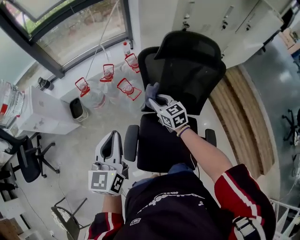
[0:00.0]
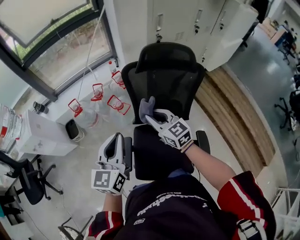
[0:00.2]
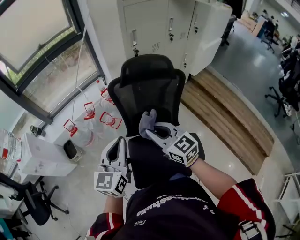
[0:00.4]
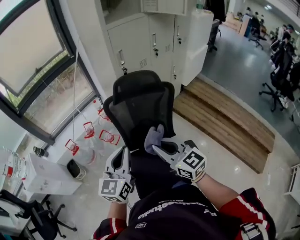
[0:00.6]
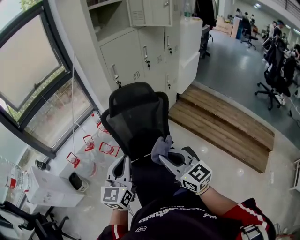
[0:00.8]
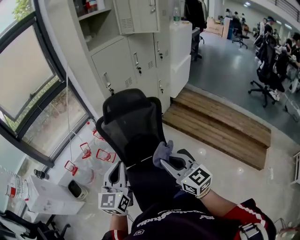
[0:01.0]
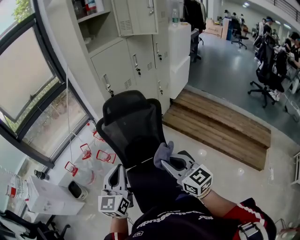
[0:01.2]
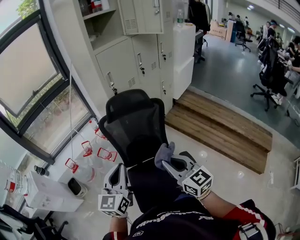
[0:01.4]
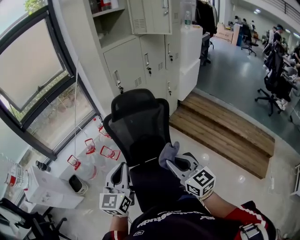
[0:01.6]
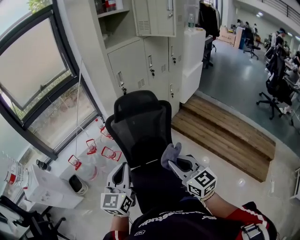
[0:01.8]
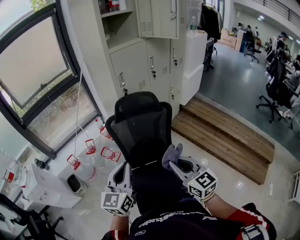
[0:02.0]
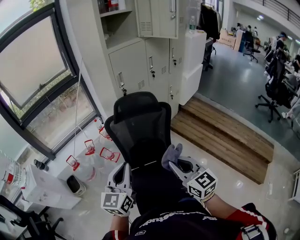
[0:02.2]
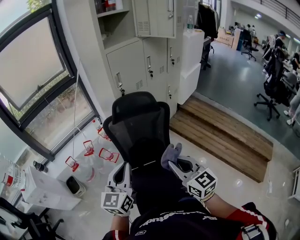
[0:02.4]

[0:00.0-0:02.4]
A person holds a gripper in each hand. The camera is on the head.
0:00.0 to 0:01.2: The left gripper goes approximately 25 cm to the right, upward and backward, and changes its angle by about 30 degrees. Meanwhile the right gripper goes roughly 50 cm backward, upward and to the right, and swivels approximately 30 degrees.
0:01.2 to 0:02.4: The grippers make only small movements.

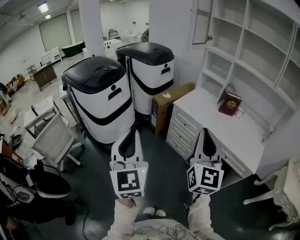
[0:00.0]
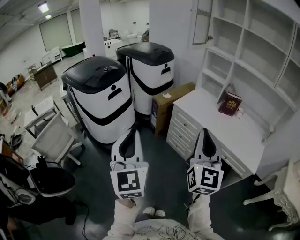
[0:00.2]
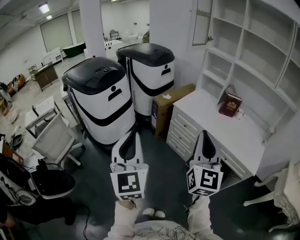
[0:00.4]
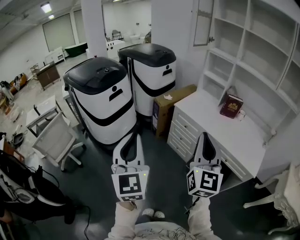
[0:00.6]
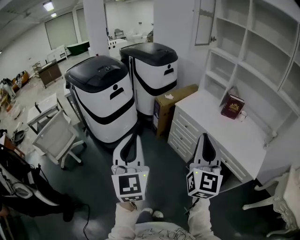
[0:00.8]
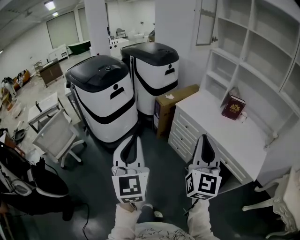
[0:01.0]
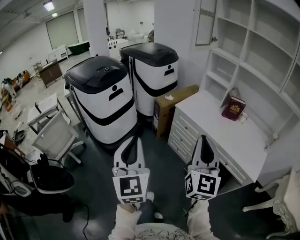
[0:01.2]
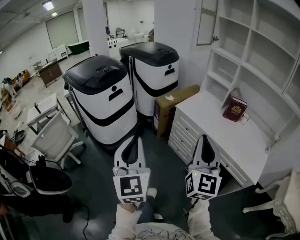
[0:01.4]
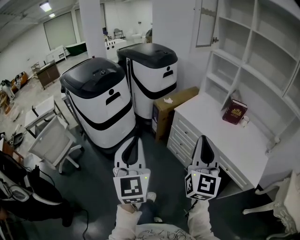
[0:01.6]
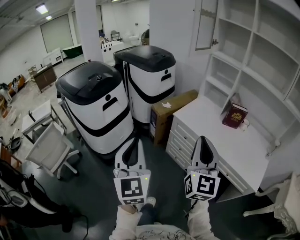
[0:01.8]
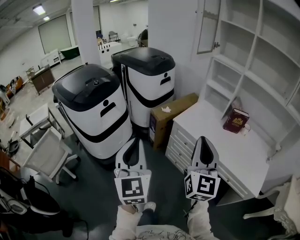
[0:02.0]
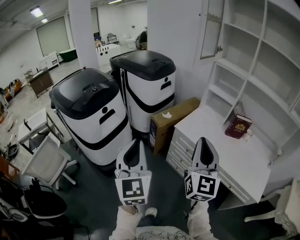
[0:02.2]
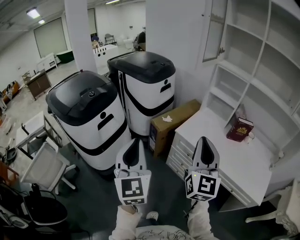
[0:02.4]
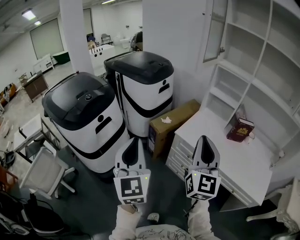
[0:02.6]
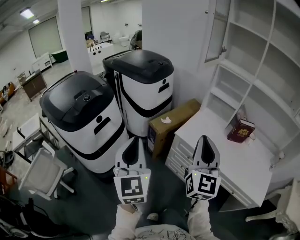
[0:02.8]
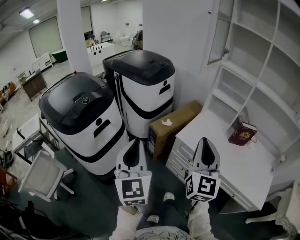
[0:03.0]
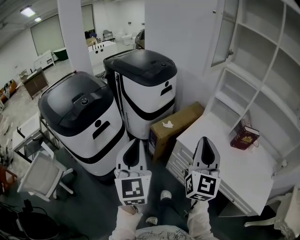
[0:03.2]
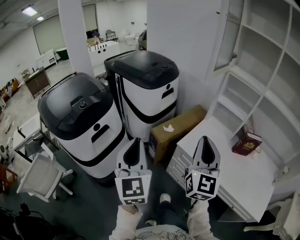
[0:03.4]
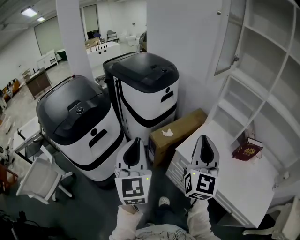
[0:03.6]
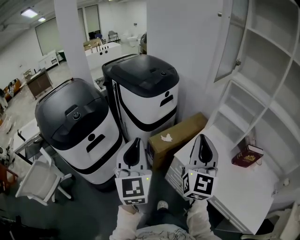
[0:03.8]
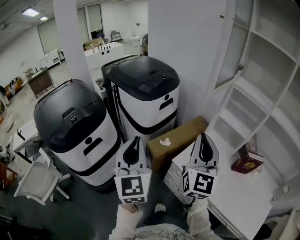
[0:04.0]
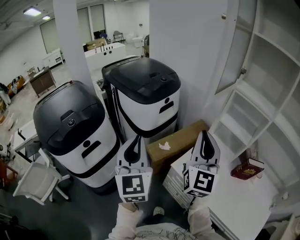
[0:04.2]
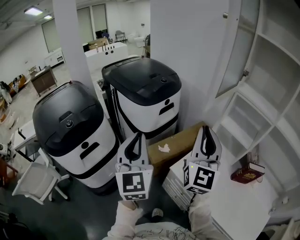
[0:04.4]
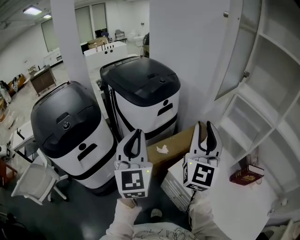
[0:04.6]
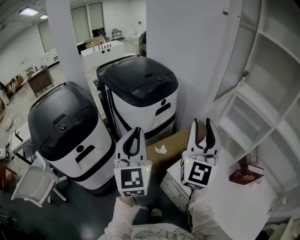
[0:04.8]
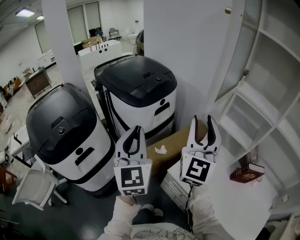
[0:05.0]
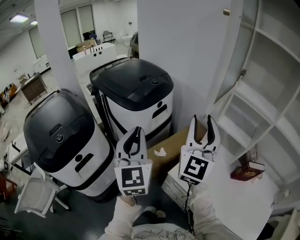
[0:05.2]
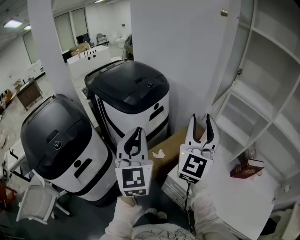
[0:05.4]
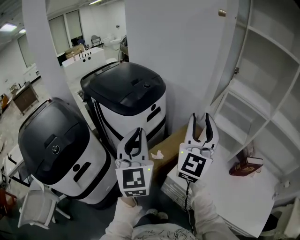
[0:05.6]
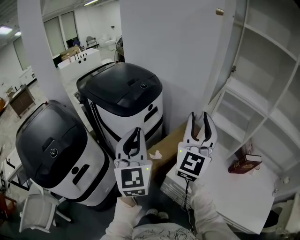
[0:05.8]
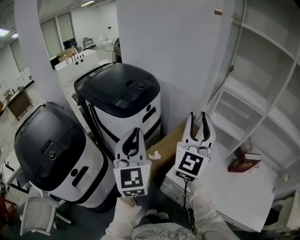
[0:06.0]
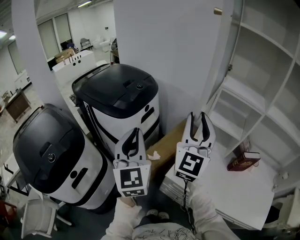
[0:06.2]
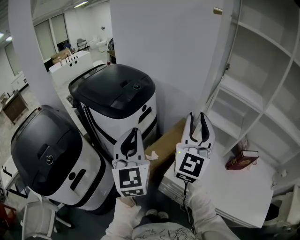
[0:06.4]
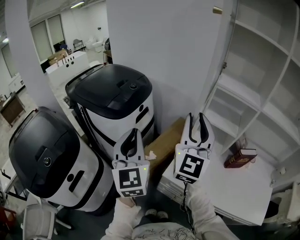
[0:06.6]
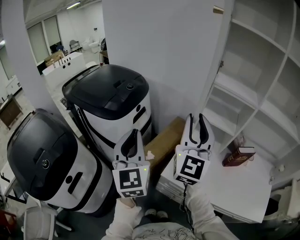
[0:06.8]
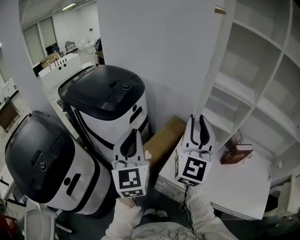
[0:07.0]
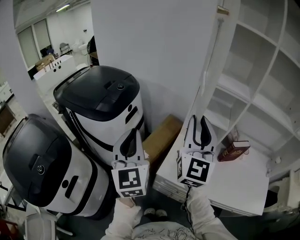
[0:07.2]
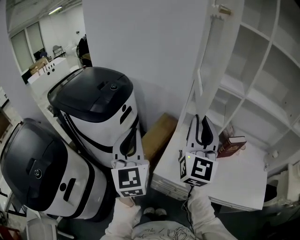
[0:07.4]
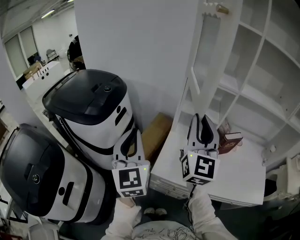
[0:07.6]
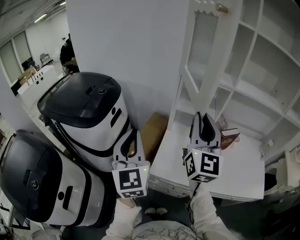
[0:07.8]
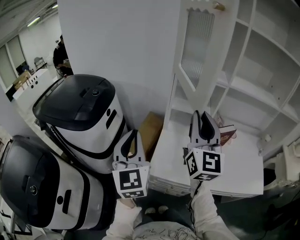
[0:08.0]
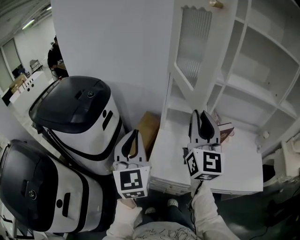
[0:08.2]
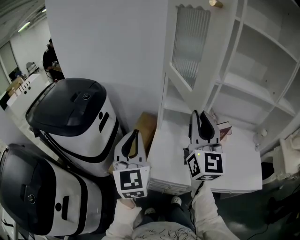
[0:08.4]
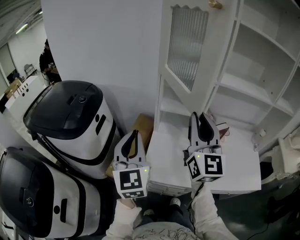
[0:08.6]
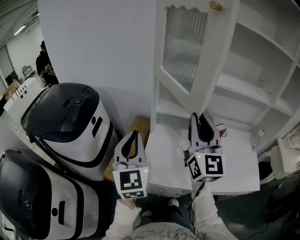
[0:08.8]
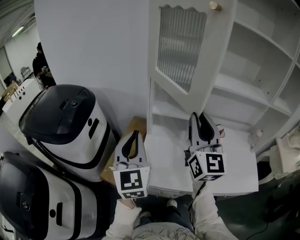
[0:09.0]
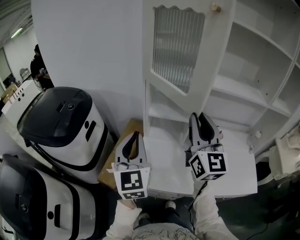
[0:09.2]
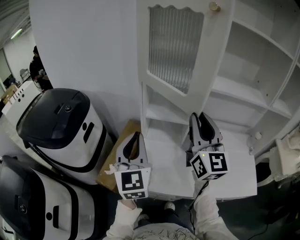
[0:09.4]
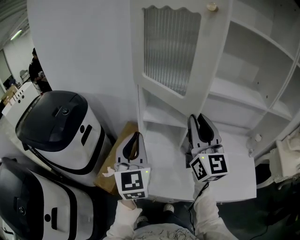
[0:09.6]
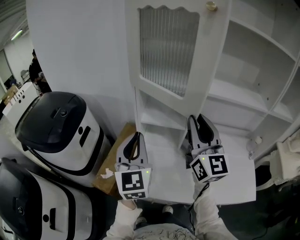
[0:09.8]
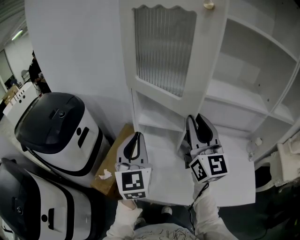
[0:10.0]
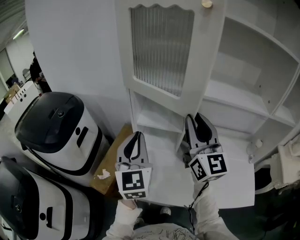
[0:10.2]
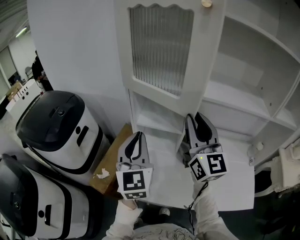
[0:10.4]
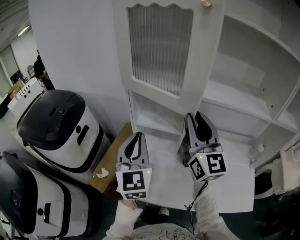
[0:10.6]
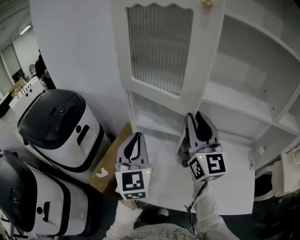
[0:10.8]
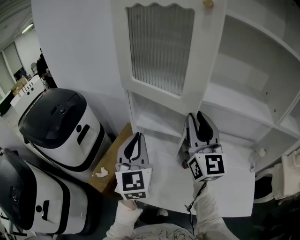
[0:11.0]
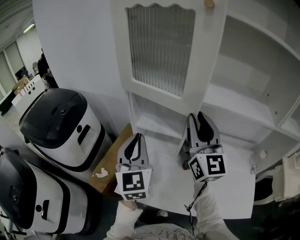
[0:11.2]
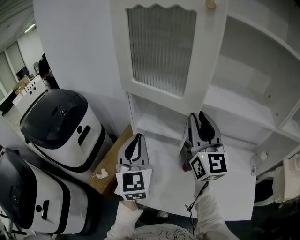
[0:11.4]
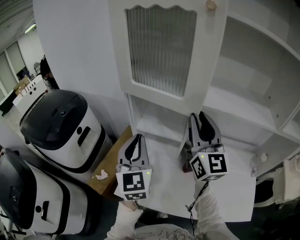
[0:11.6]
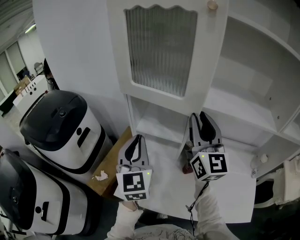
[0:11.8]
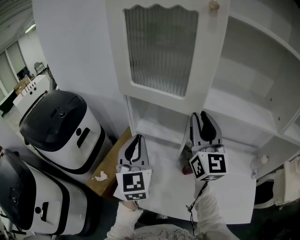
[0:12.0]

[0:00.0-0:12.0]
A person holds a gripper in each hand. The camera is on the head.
0:00.0 to 0:01.6: The two grippers go about 10 cm forward.
0:01.6 to 0:03.0: The two grippers go about 30 cm forward.
0:03.0 to 0:04.4: The two grippers go roughly 25 cm forward.
0:04.4 to 0:06.0: The two grippers go roughly 10 cm forward. The right gripper changes its angle by some 20 degrees, and opens.
0:06.0 to 0:07.6: Both grippers travel together to the right, approximately 10 cm.
0:07.6 to 0:09.0: The left gripper travels to the right and forward by approximately 15 cm; the right gripper is displaced to the right by approximately 10 cm.
0:09.0 to 0:10.4: Both grippers travel together to the right and forward, roughly 15 cm.
0:10.4 to 0:12.0: The right gripper shifts roughly 5 cm forward, while the left gripper moves approximately 5 cm.

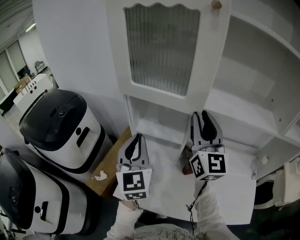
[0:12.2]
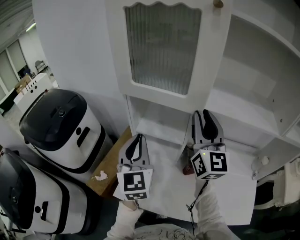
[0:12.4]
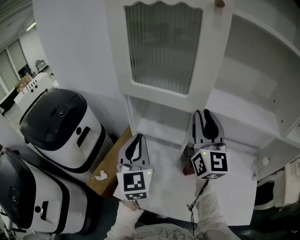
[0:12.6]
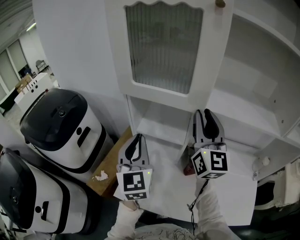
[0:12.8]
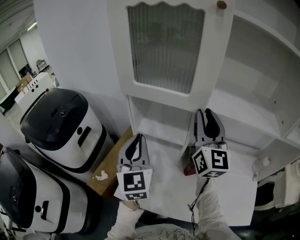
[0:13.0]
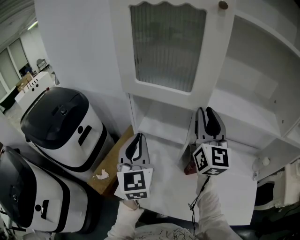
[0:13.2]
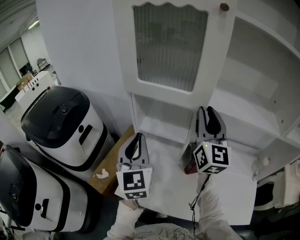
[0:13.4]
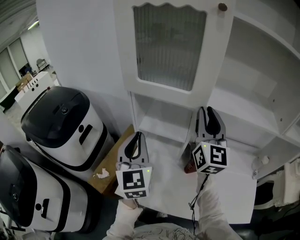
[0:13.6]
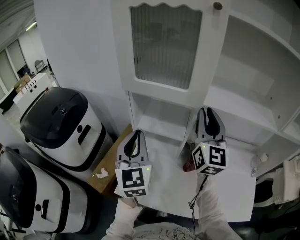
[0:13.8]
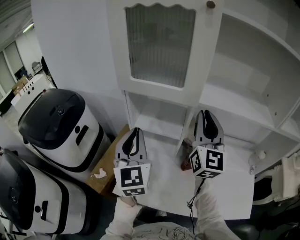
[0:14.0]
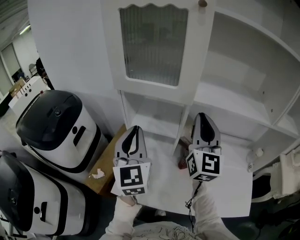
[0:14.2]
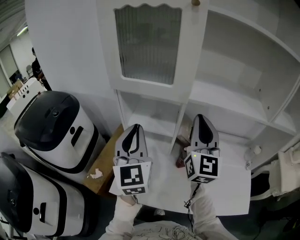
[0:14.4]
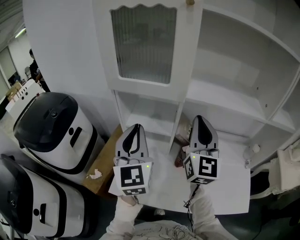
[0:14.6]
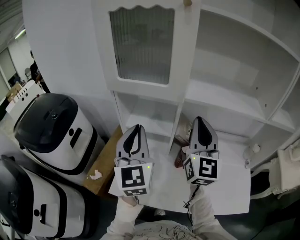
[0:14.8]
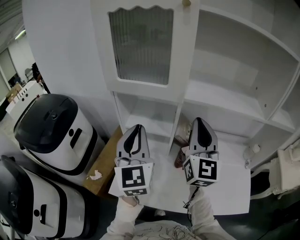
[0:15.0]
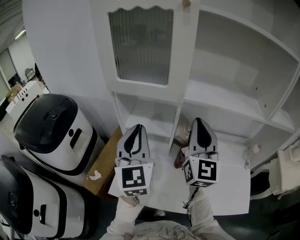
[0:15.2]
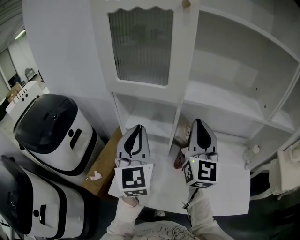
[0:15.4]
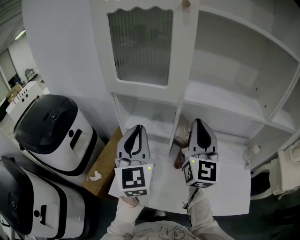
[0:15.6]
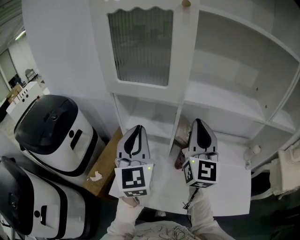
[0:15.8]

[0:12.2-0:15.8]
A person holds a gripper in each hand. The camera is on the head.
0:12.2 to 0:14.0: There are only small adjustments of the grippers.
0:14.0 to 0:15.8: The left gripper goes approximately 5 cm to the right.

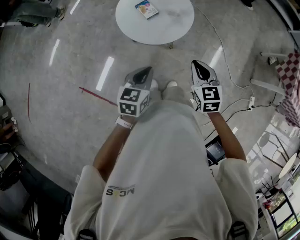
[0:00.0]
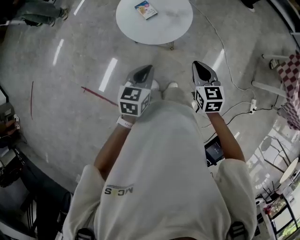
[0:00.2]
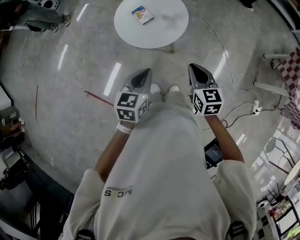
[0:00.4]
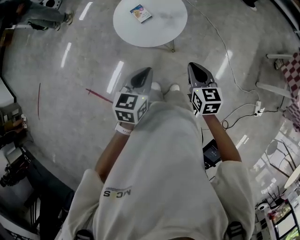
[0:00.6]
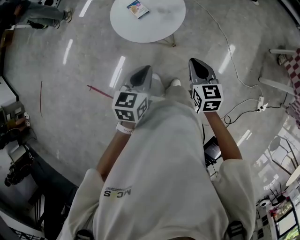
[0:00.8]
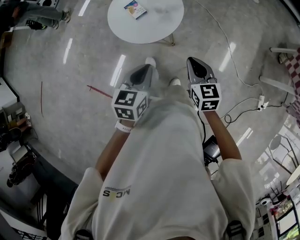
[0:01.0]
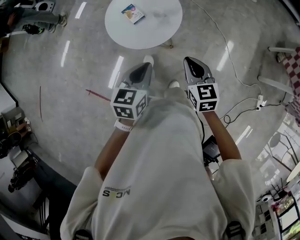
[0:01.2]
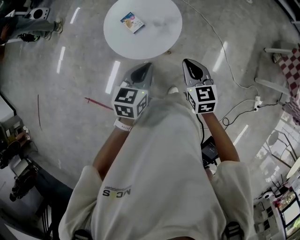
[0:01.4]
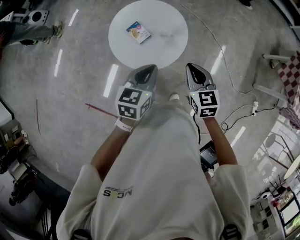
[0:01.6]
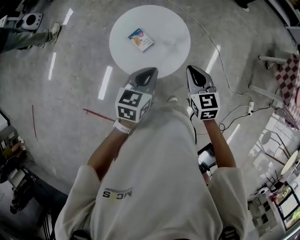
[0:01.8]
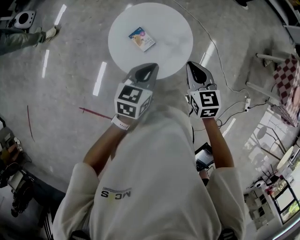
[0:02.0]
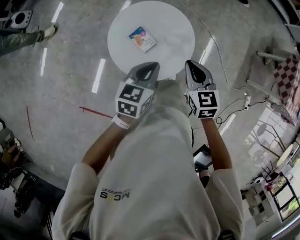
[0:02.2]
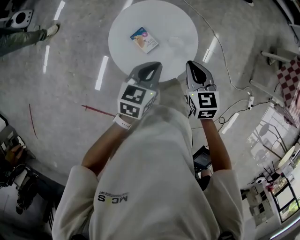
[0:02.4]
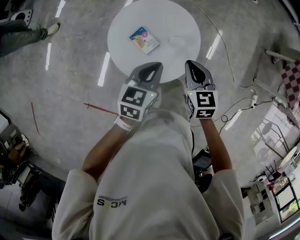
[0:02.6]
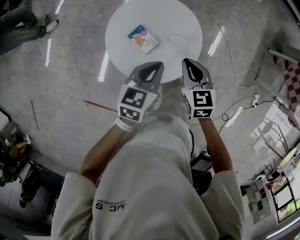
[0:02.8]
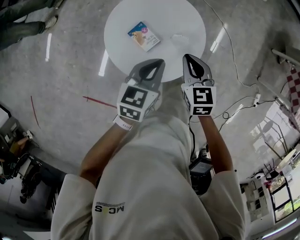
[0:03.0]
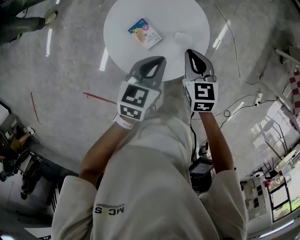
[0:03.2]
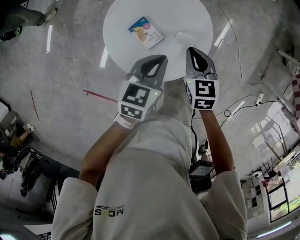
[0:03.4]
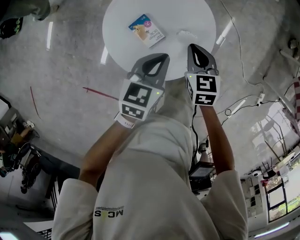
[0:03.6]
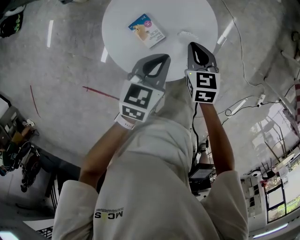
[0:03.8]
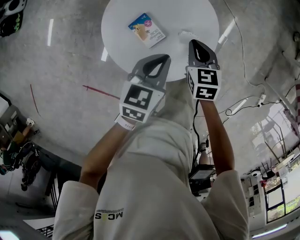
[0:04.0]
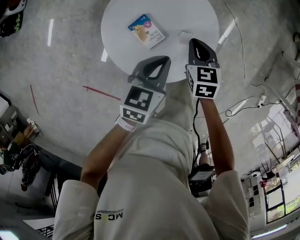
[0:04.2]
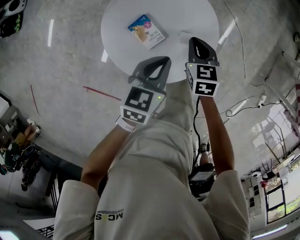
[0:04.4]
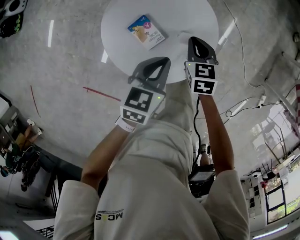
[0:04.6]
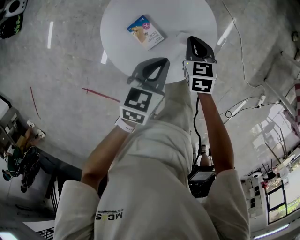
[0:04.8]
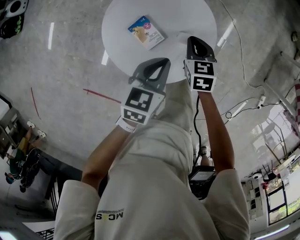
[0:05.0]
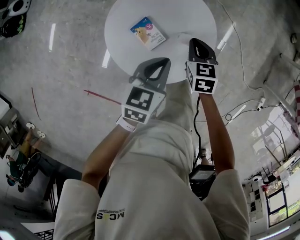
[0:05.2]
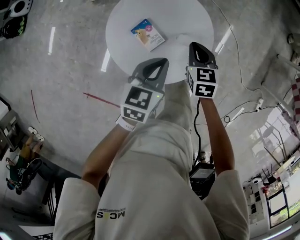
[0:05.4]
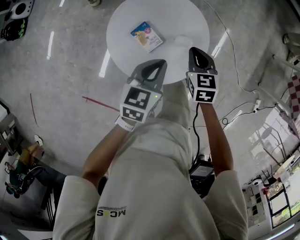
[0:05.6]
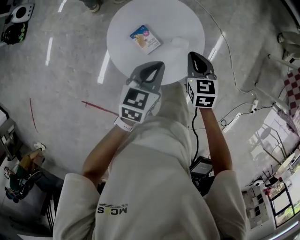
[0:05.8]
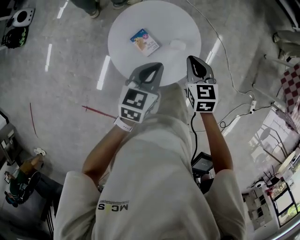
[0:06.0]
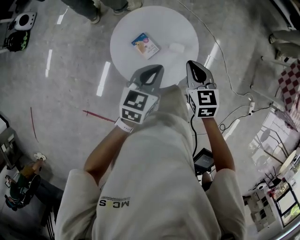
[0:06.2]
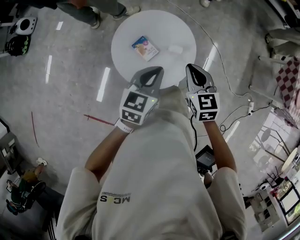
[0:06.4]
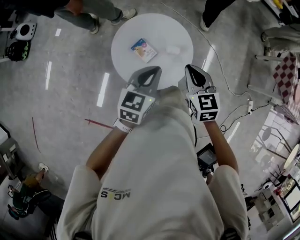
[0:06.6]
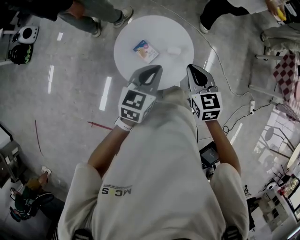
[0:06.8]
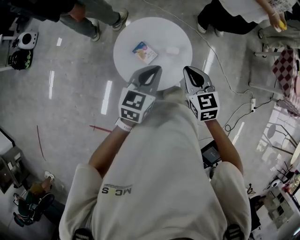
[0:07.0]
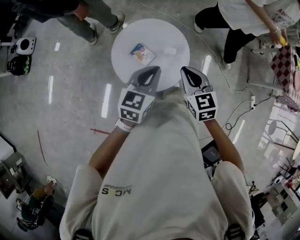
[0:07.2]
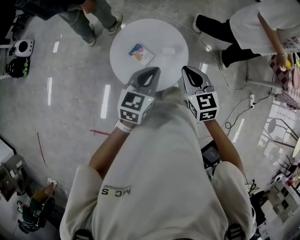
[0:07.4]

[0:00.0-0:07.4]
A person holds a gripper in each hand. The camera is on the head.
0:00.0 to 0:01.4: The two grippers go approximately 15 cm forward and to the right.
0:01.4 to 0:03.0: The two grippers go approximately 30 cm forward, to the left and downward.
0:03.0 to 0:04.4: The right gripper is displaced downward and forward by approximately 15 cm, while the left gripper moves downward, approximately 5 cm.
0:04.4 to 0:06.0: The left gripper travels upward by about 10 cm, while the right gripper is displaced upward and backward by approximately 15 cm.
0:06.0 to 0:07.4: The left gripper travels upward by roughly 10 cm, while the right gripper goes approximately 15 cm upward and backward.
